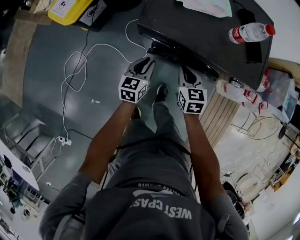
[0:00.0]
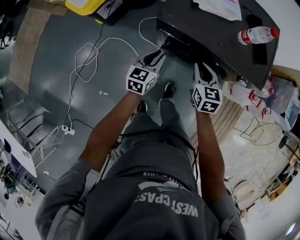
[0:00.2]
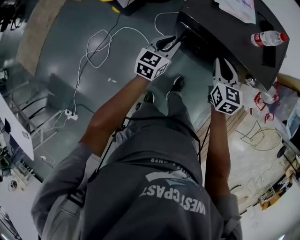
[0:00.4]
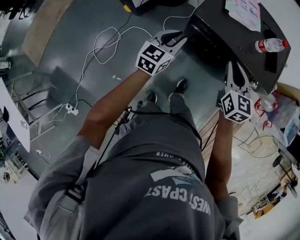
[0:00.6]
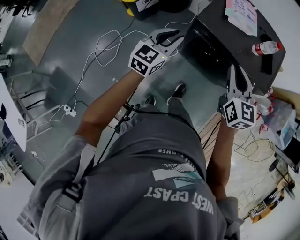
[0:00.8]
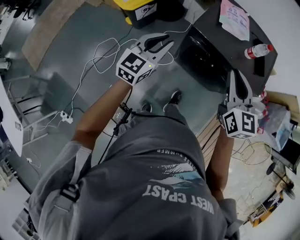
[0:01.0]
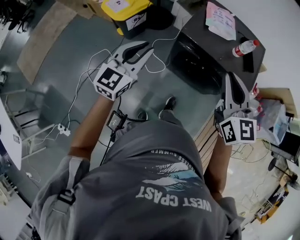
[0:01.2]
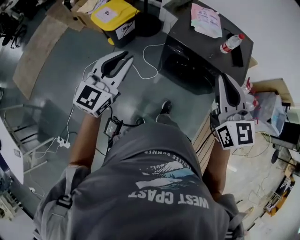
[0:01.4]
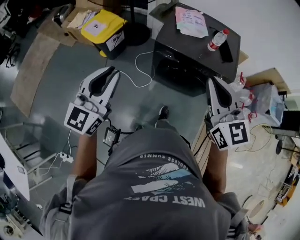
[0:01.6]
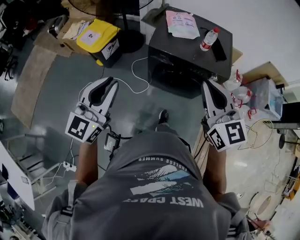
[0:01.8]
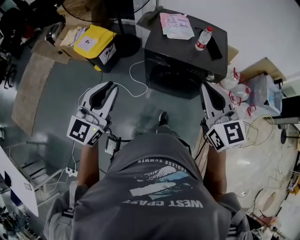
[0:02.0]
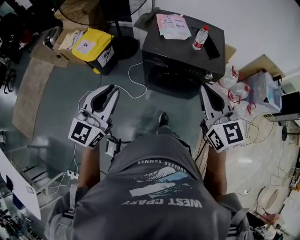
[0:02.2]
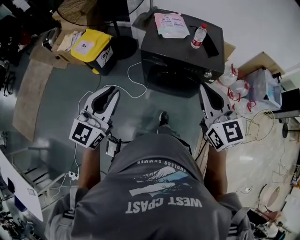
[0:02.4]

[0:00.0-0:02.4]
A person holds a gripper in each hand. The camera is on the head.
0:00.0 to 0:01.2: The right gripper travels upward by some 40 cm, and tilts its fingers roughly 30 degrees upward. Meanwhile the left gripper shifts approximately 40 cm upward and to the left, and turns by some 30 degrees.
0:01.2 to 0:02.4: The left gripper moves backward and upward, about 10 cm, while the right gripper heads backward and to the right, covering about 10 cm.

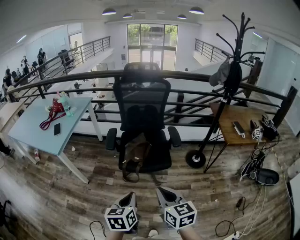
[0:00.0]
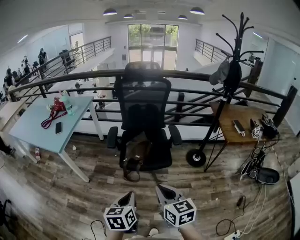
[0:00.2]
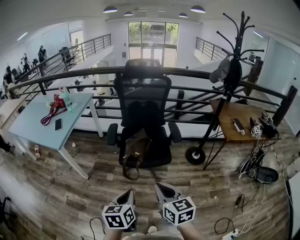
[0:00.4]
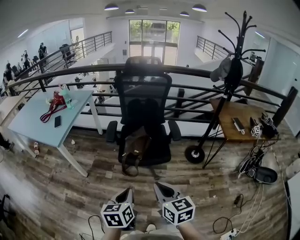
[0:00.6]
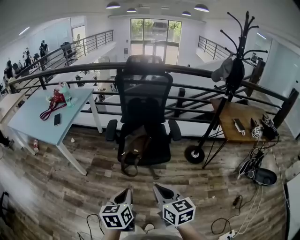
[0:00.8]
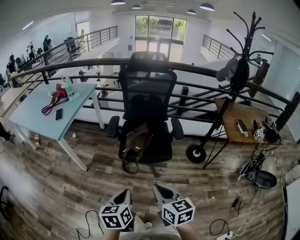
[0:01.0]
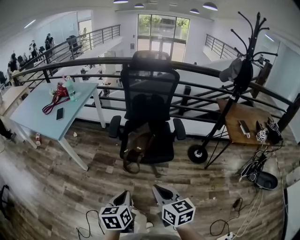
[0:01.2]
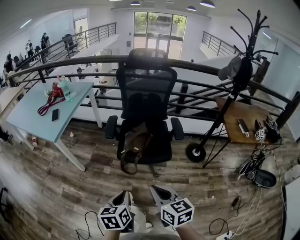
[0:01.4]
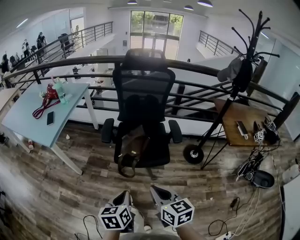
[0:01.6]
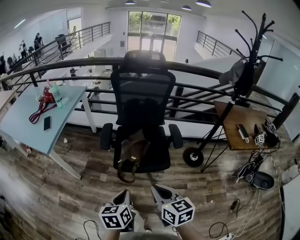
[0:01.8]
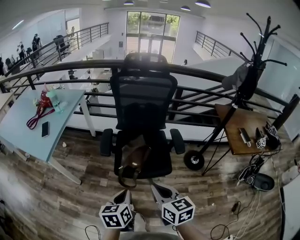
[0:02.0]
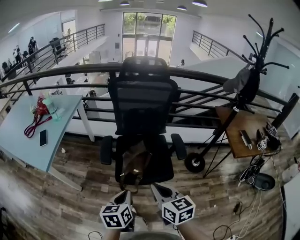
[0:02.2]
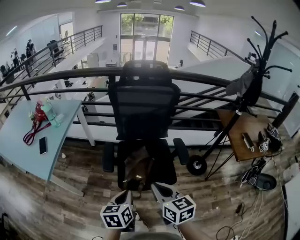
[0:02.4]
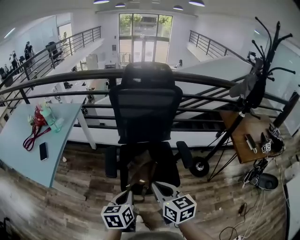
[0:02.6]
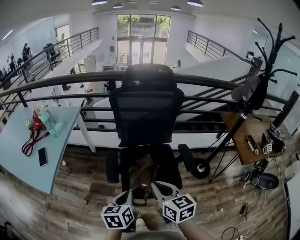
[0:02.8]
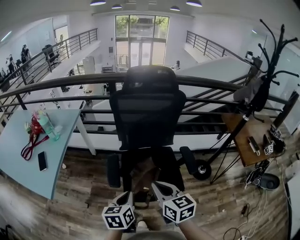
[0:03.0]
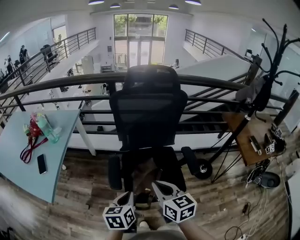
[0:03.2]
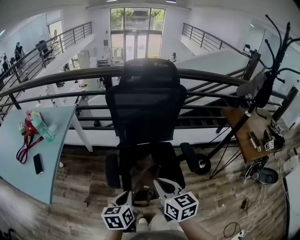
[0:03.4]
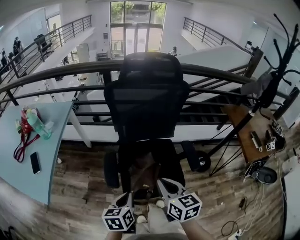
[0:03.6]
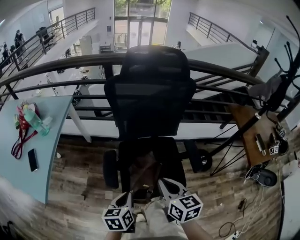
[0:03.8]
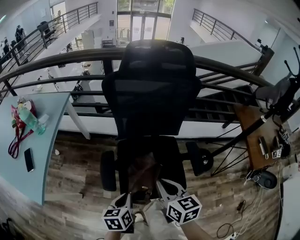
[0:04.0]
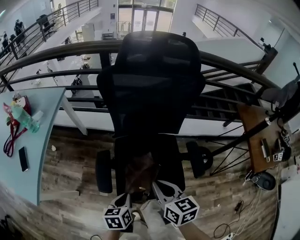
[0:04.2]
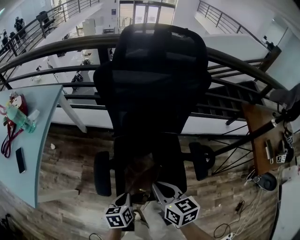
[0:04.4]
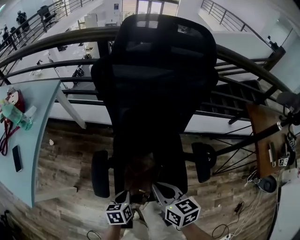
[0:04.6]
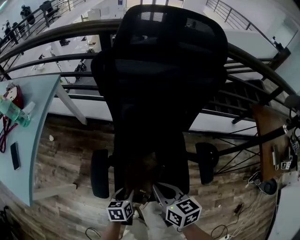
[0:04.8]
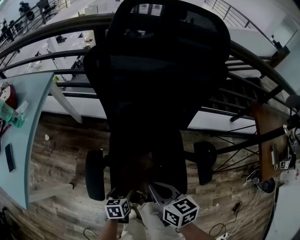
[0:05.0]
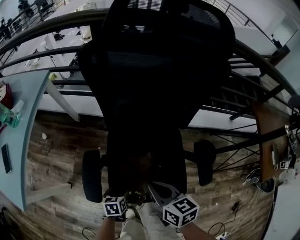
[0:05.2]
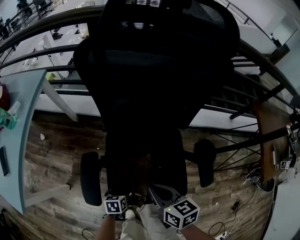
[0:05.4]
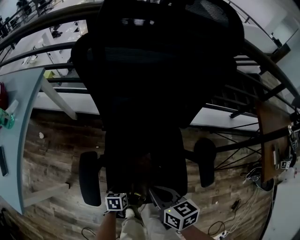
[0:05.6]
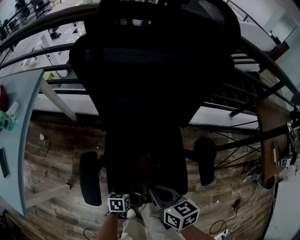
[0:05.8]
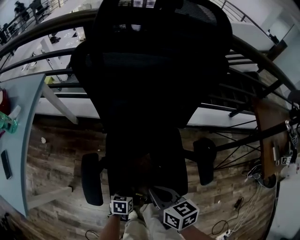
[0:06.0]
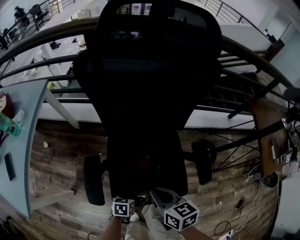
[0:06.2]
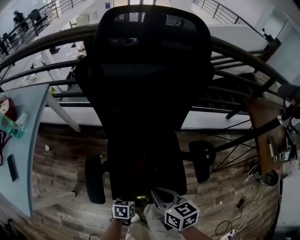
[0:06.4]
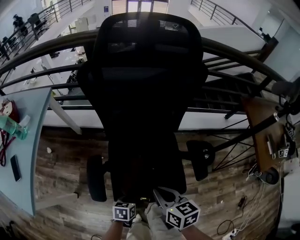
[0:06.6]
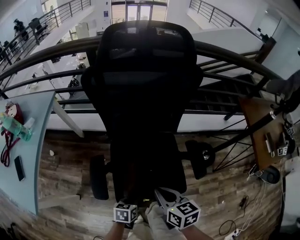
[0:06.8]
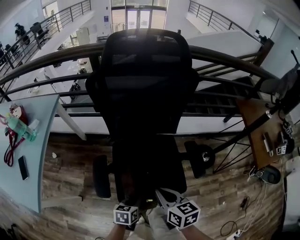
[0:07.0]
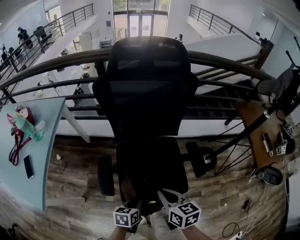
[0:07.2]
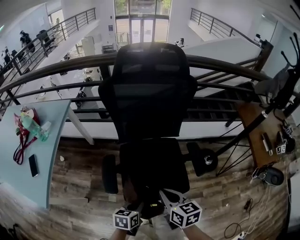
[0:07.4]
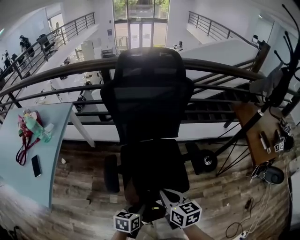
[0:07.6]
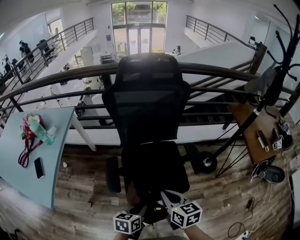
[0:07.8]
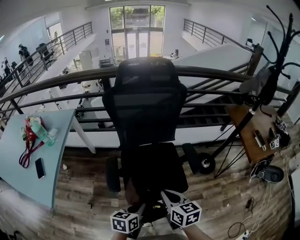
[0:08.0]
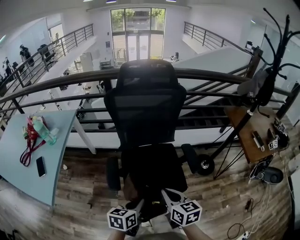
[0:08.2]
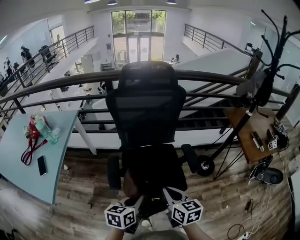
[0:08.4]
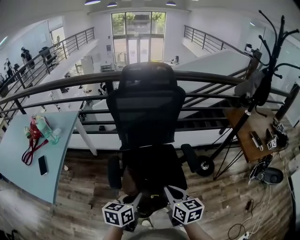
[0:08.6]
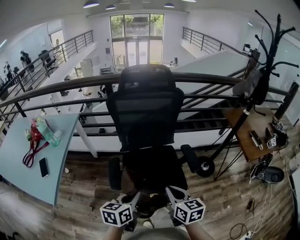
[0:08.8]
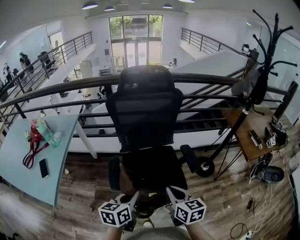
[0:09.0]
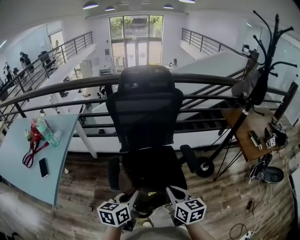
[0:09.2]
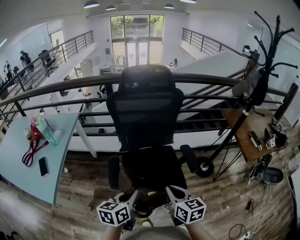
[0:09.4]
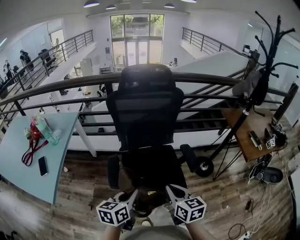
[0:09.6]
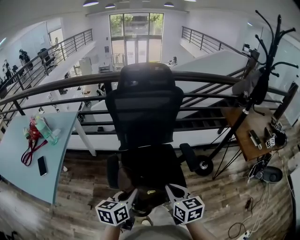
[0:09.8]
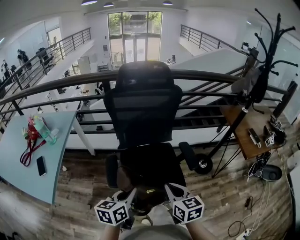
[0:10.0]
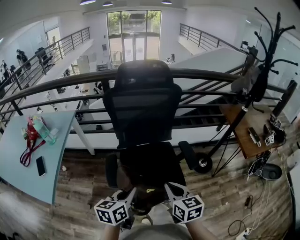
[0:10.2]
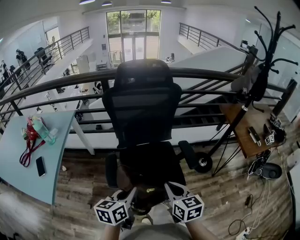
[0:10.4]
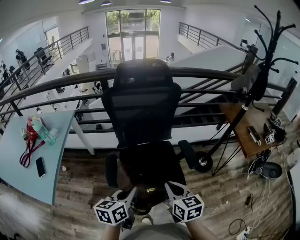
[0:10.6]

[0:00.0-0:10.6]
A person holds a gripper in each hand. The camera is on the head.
0:00.0 to 0:01.6: The left gripper ends up roughly 5 cm from where it was, while the right gripper moves about 5 cm.
0:01.6 to 0:03.0: The two grippers go about 30 cm forward.
0:03.0 to 0:04.6: Both grippers move downward and forward, roughly 25 cm.
0:04.6 to 0:06.0: The left gripper heads downward, covering approximately 15 cm, and opens, then closes again. Meanwhile the right gripper travels downward by some 5 cm.
0:06.0 to 0:07.6: The left gripper moves upward and backward, roughly 25 cm; the right gripper heads upward and backward, covering roughly 15 cm.
0:07.6 to 0:09.0: The left gripper moves upward, approximately 15 cm; the right gripper shifts approximately 10 cm upward and backward.
0:09.0 to 0:10.6: There are only small adjustments of the grippers.

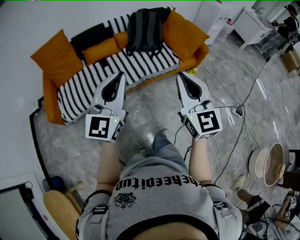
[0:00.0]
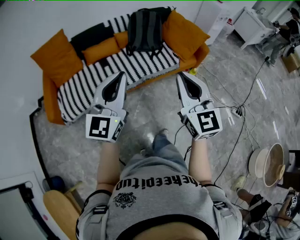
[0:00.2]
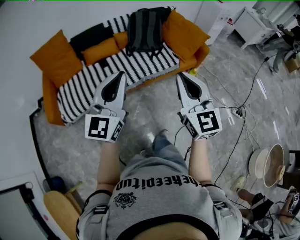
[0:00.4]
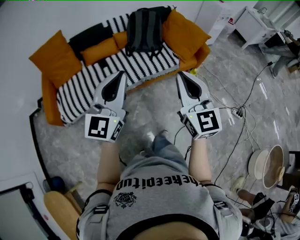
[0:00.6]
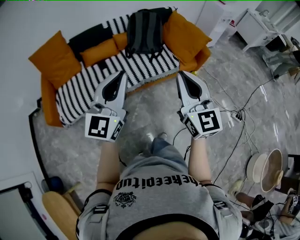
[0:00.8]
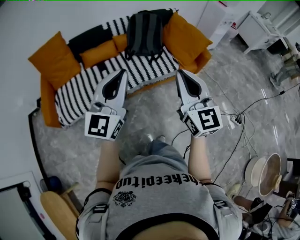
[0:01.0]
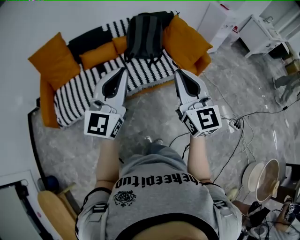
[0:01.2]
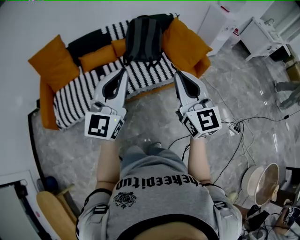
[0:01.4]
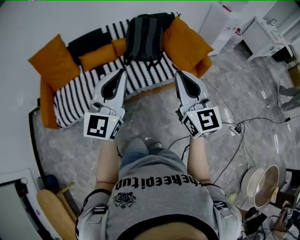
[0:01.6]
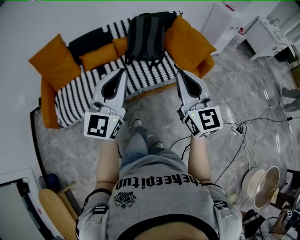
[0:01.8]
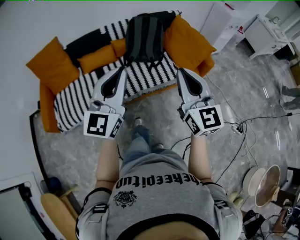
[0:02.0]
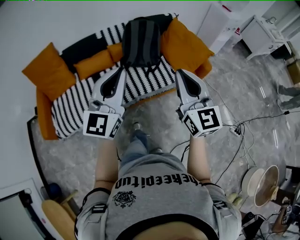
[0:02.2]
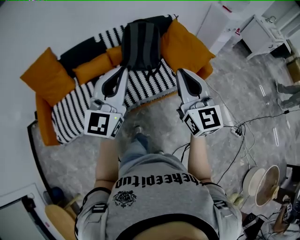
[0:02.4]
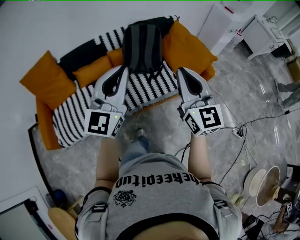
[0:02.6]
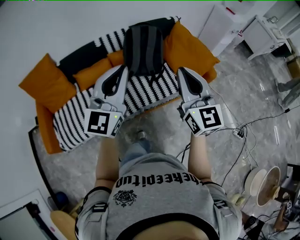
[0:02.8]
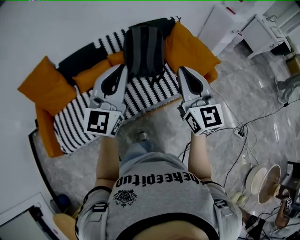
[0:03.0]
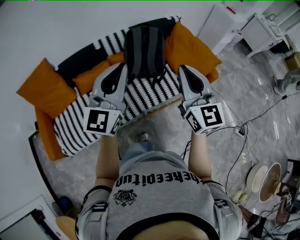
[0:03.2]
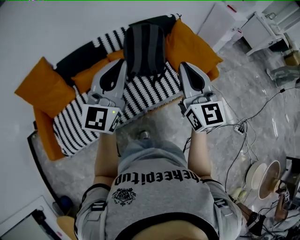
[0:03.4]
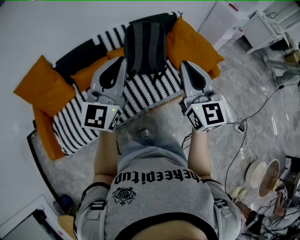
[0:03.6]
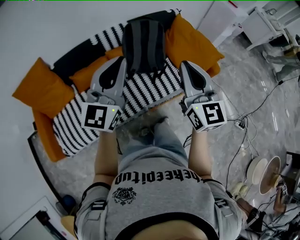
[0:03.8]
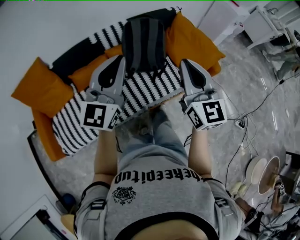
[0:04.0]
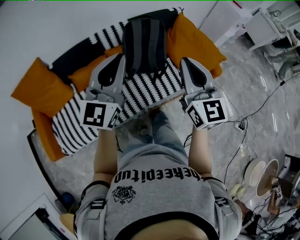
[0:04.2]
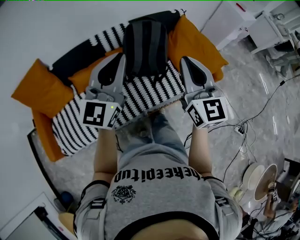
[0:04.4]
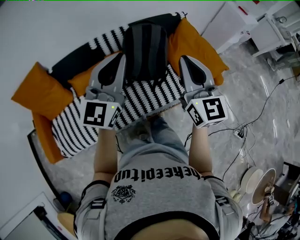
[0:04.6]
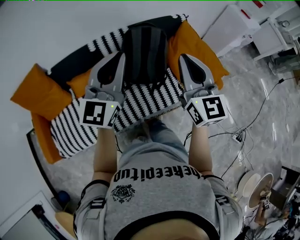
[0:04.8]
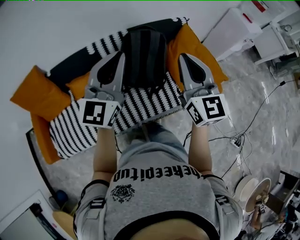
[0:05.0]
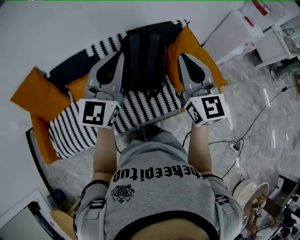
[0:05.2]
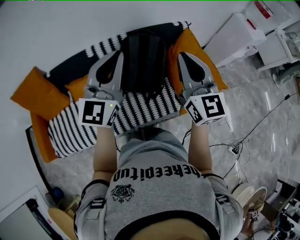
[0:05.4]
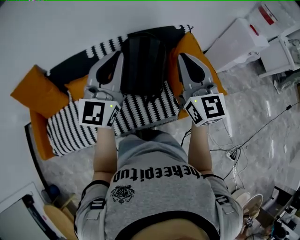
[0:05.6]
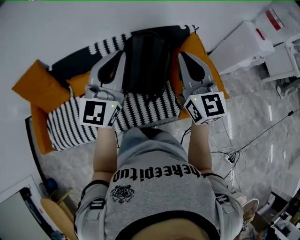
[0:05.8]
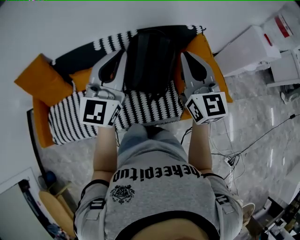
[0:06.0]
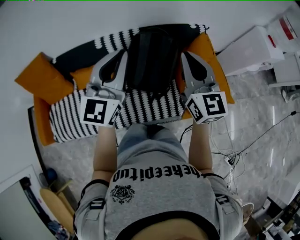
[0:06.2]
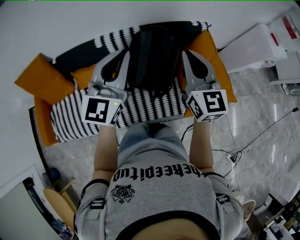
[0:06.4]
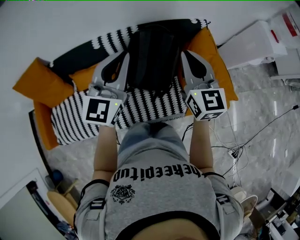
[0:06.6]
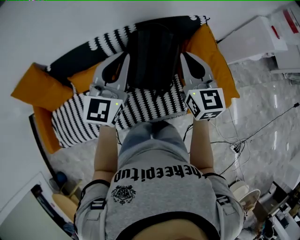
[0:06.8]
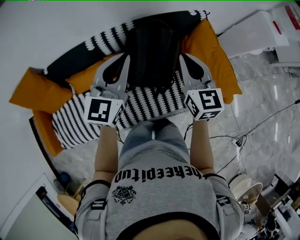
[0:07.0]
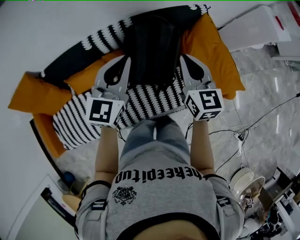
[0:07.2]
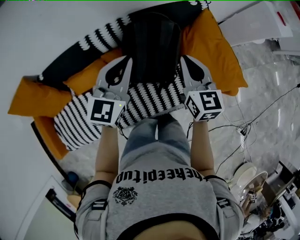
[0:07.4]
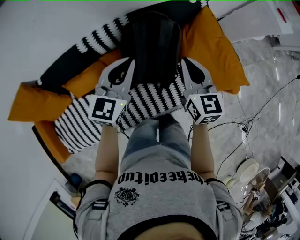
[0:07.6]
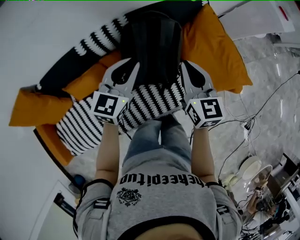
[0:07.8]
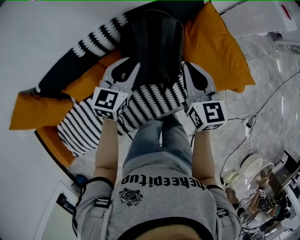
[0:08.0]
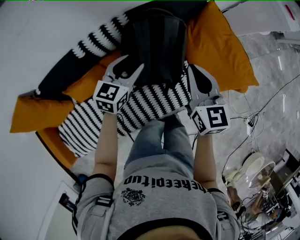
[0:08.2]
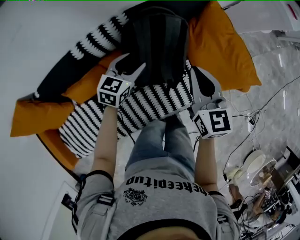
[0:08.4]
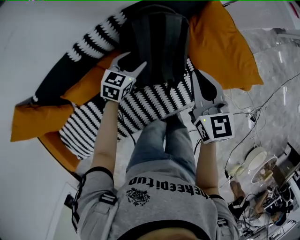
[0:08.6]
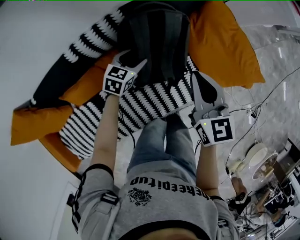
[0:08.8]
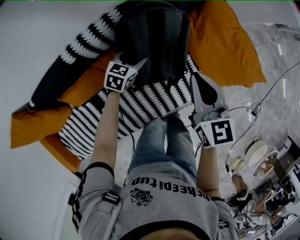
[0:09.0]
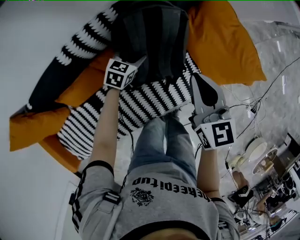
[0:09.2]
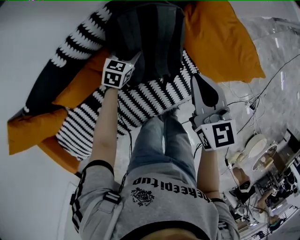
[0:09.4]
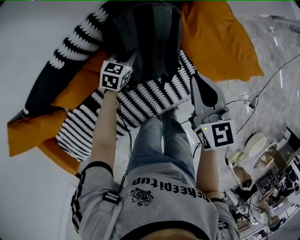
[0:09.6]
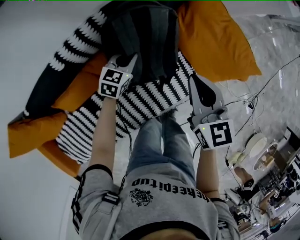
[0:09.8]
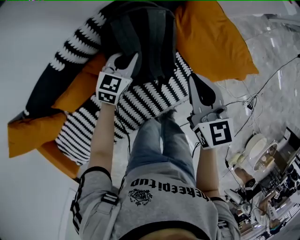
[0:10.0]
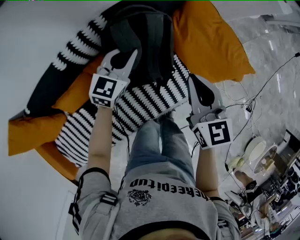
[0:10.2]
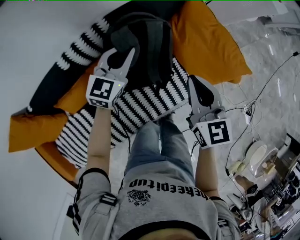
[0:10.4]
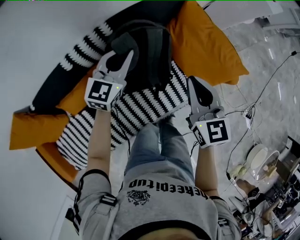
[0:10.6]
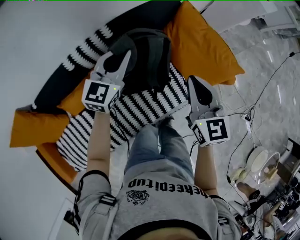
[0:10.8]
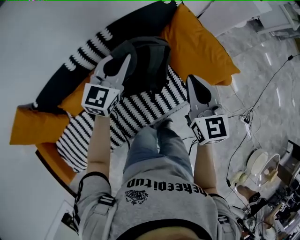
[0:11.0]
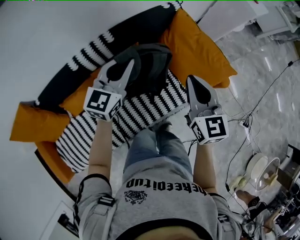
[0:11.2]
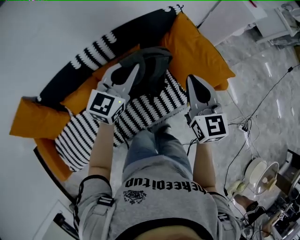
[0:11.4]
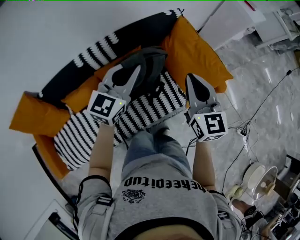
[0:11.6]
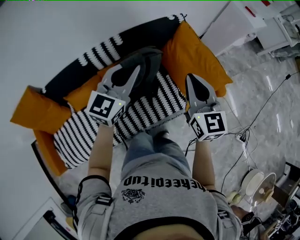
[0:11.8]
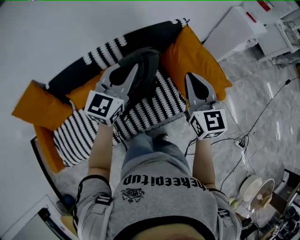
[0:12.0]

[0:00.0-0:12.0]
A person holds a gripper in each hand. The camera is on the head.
0:00.0 to 0:01.6: Both grippers move forward and to the right, approximately 15 cm.
0:01.6 to 0:03.0: Both grippers travel together forward, approximately 25 cm.
0:03.0 to 0:04.4: Both grippers travel together forward, approximately 10 cm.
0:04.4 to 0:06.0: The right gripper goes about 20 cm forward. Meanwhile the left gripper shifts approximately 15 cm forward and to the right.
0:06.0 to 0:07.6: The two grippers go about 20 cm downward and forward. The left gripper changes its angle by approximately 30 degrees; the right gripper turns by some 30 degrees.
0:07.6 to 0:09.0: The right gripper shifts approximately 5 cm downward; the left gripper heads downward, covering some 30 cm, swivels about 40 degrees, and opens its fingers.
0:09.0 to 0:10.4: The left gripper shifts roughly 20 cm upward, changes its angle by some 30 degrees, and closes; the right gripper heads to the right, covering approximately 5 cm.
0:10.4 to 0:12.0: The left gripper travels upward and backward by approximately 25 cm, while the right gripper heads upward and backward, covering approximately 15 cm.
